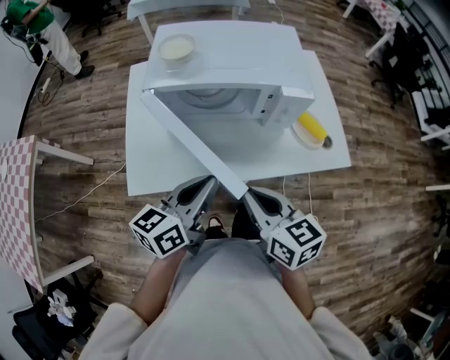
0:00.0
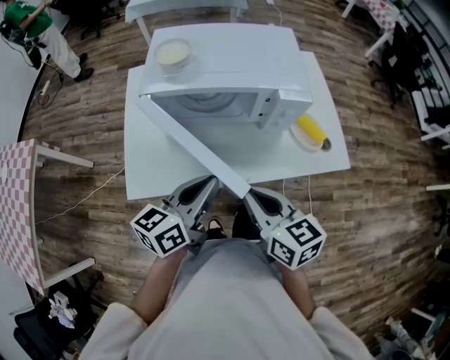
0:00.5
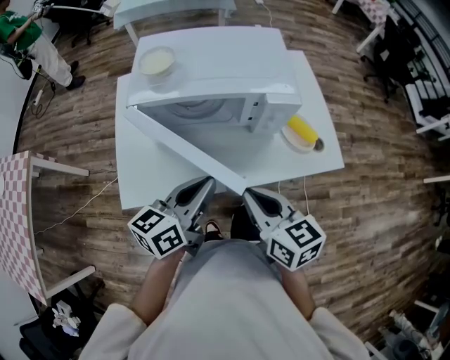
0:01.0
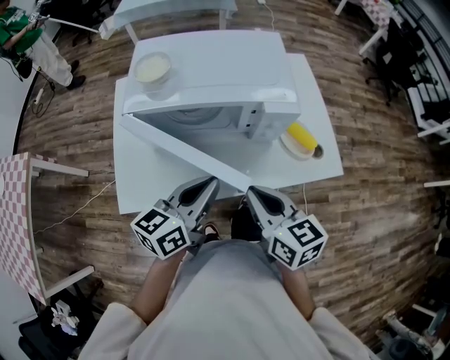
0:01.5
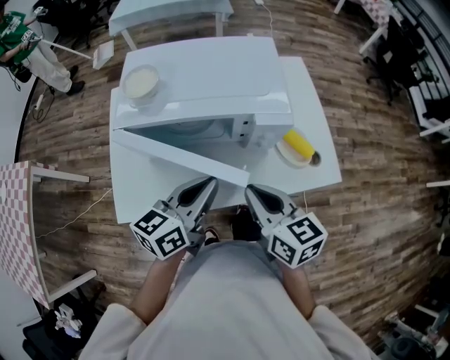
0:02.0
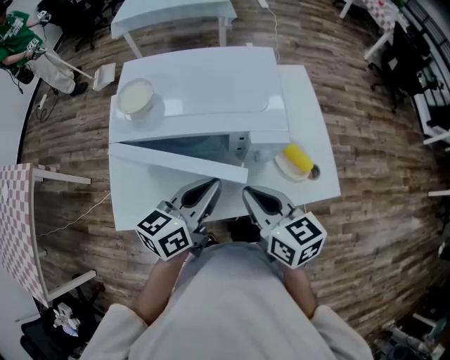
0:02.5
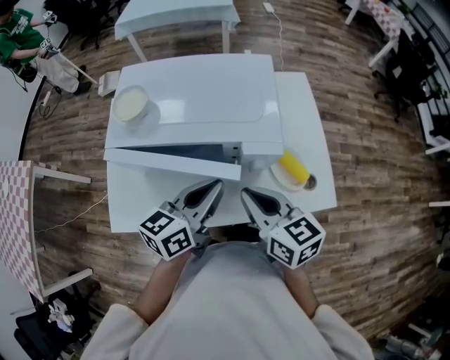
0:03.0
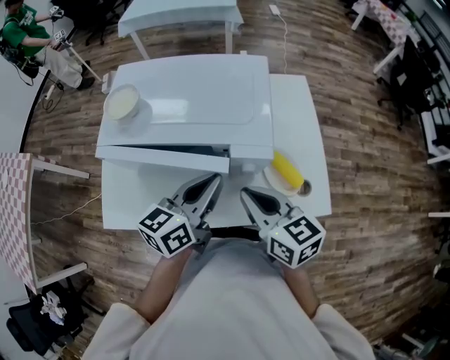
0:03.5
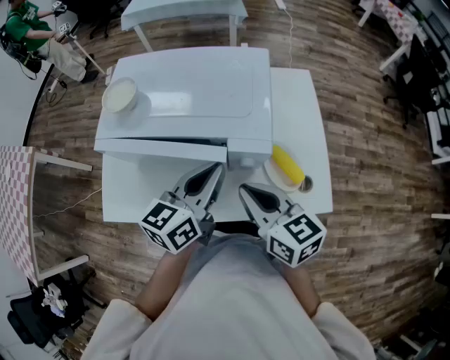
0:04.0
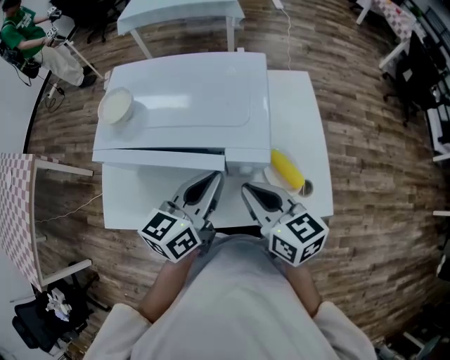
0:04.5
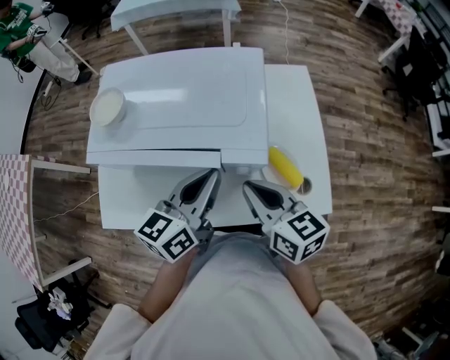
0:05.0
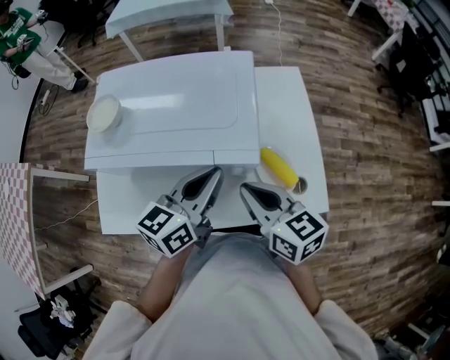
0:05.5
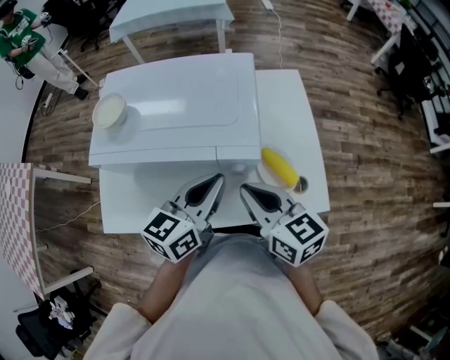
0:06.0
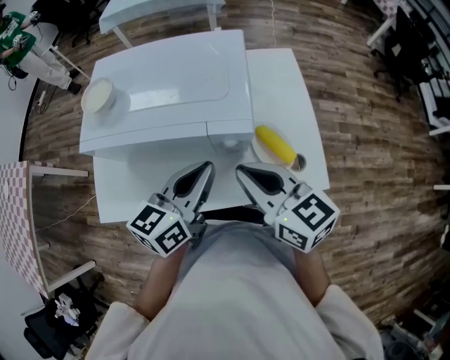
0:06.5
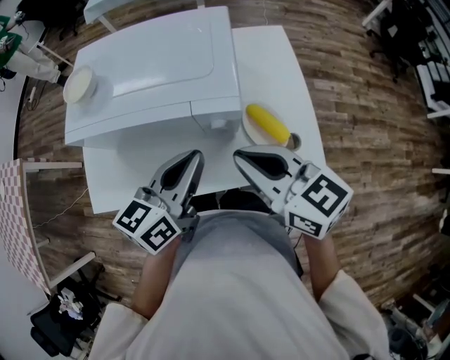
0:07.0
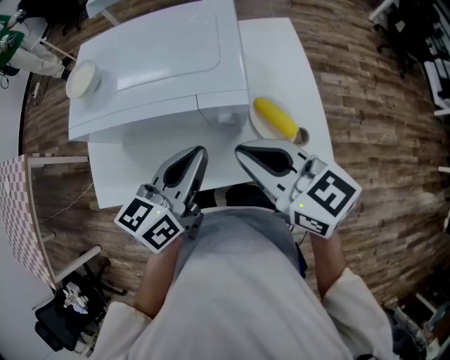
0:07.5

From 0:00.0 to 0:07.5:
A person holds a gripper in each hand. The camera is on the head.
From 0:00.0 to 0:02.0: Both grippers travel together forward and to the right, roughly 10 cm.
From 0:02.0 to 0:04.0: The right gripper shifts about 10 cm forward and to the right. Meanwhile the left gripper travels to the right and forward by approximately 10 cm.
From 0:04.0 to 0:05.5: The grippers make only small movements.
From 0:05.5 to 0:07.5: The right gripper shifts some 5 cm upward; the left gripper travels backward by roughly 5 cm.

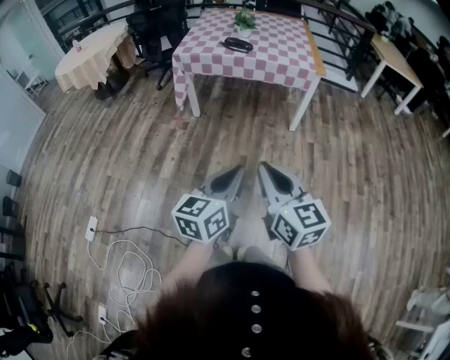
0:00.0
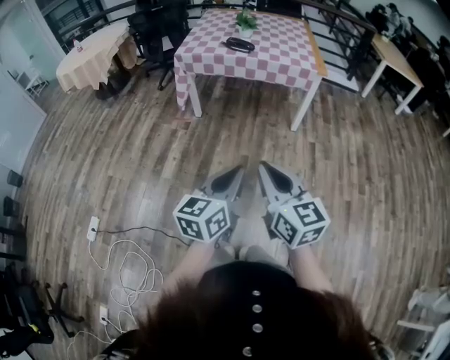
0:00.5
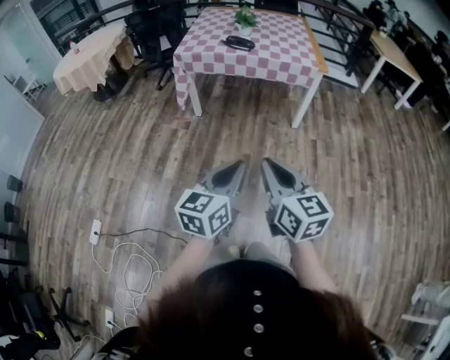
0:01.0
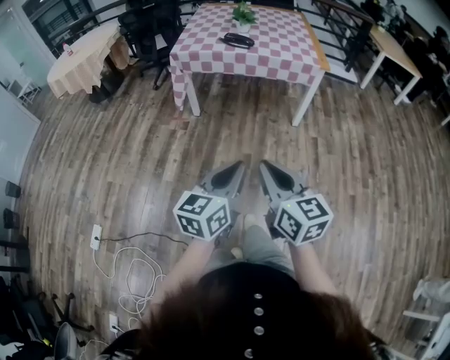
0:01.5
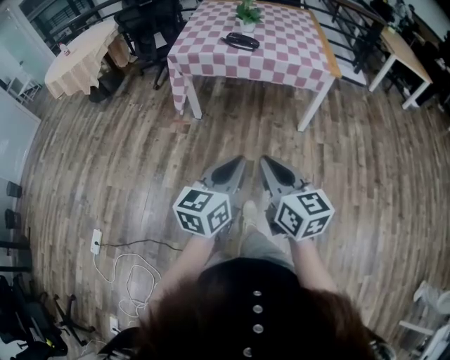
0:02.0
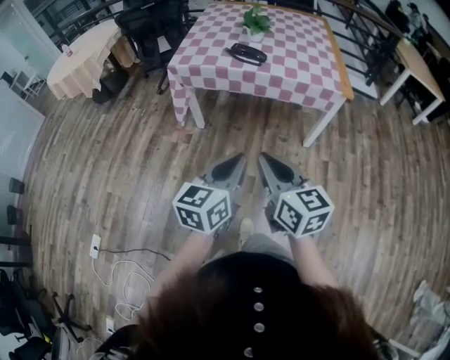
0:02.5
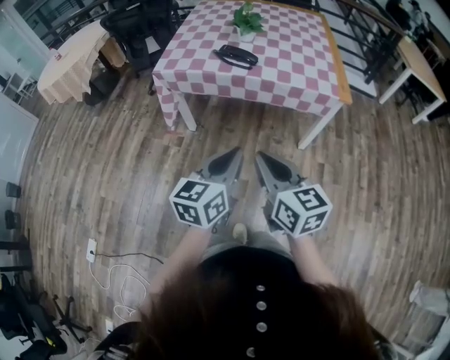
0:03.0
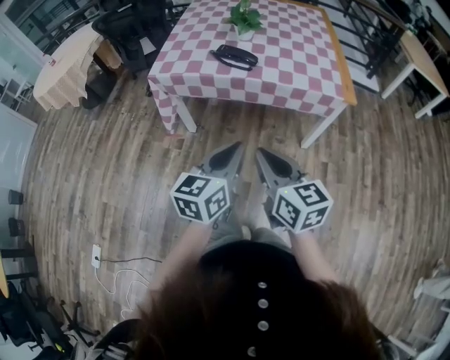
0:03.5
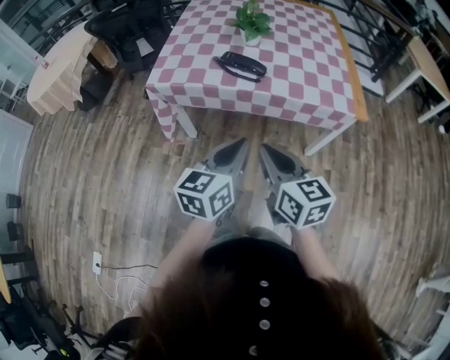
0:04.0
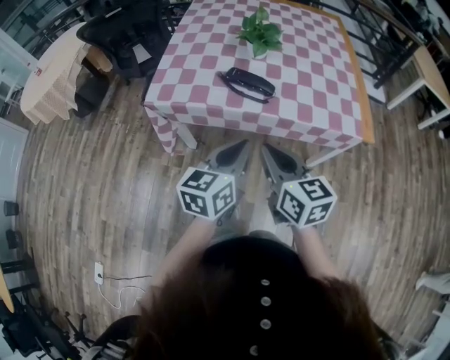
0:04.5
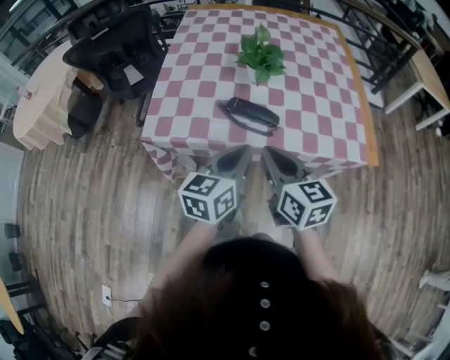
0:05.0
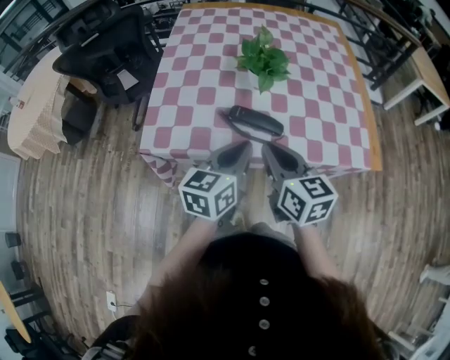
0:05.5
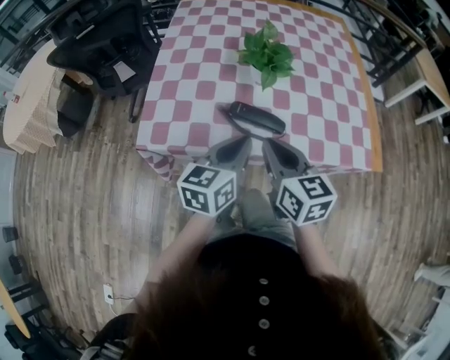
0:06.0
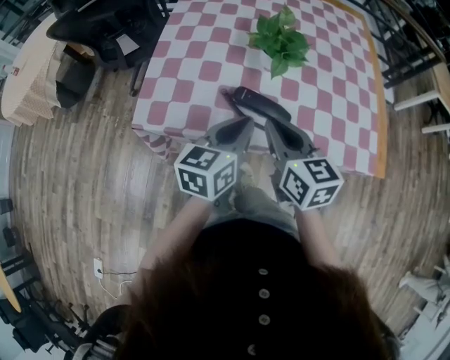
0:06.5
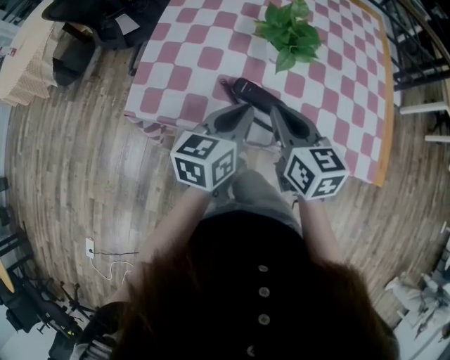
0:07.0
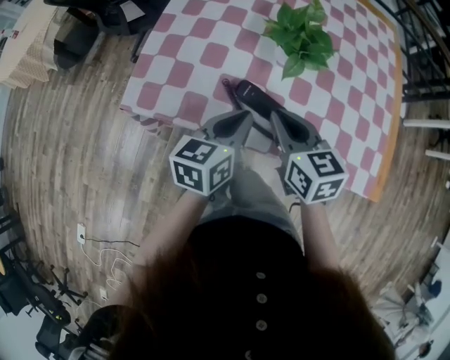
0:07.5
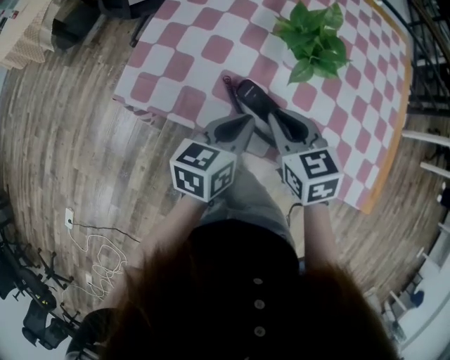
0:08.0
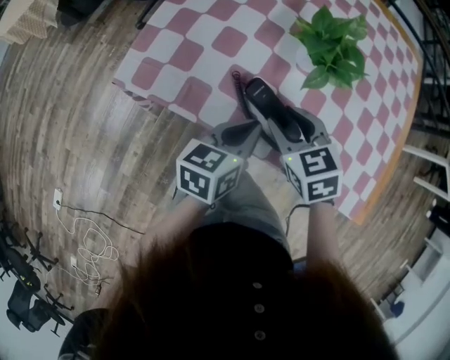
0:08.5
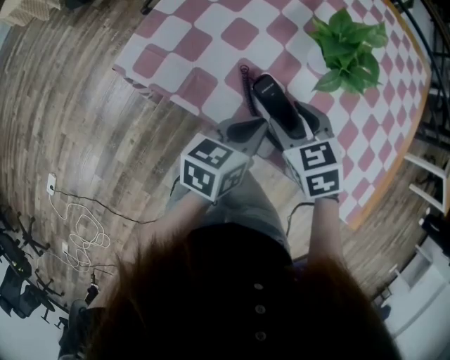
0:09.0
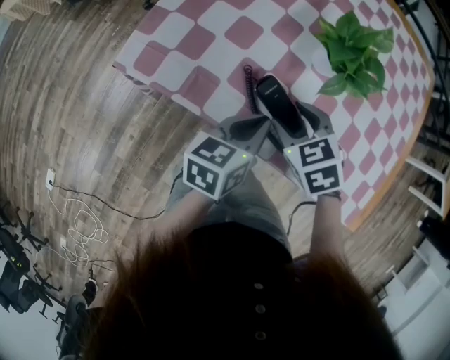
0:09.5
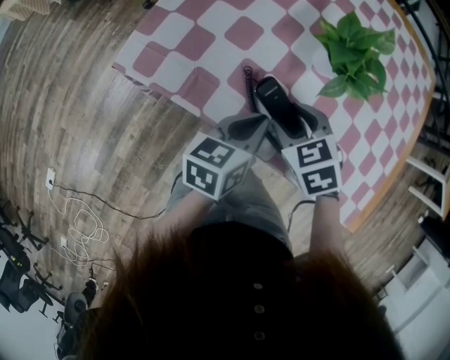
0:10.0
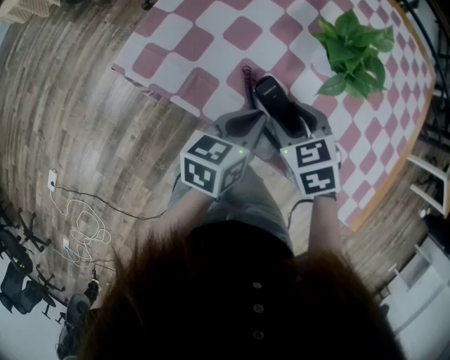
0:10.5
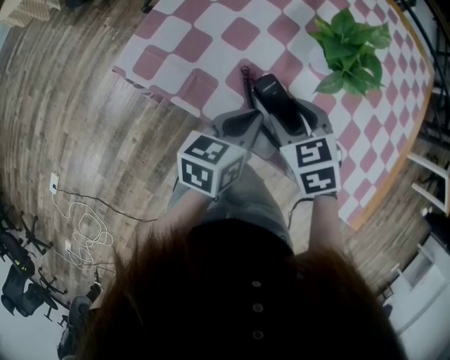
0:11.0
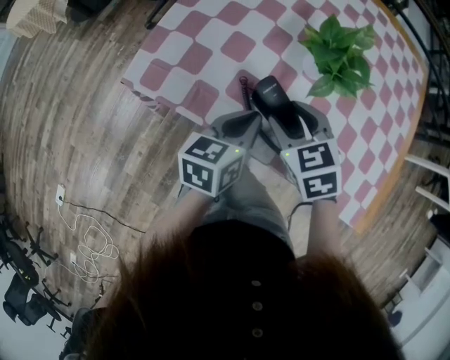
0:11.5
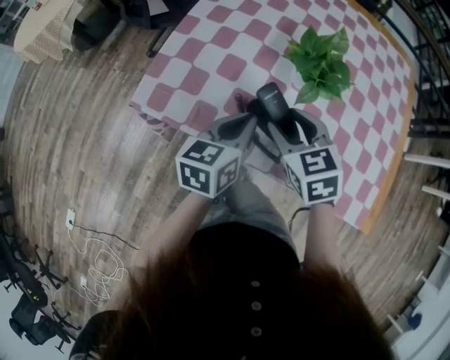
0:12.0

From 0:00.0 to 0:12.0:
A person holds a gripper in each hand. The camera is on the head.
From 0:00.0 to 0:02.0: The two grippers go about 15 cm forward.
From 0:02.0 to 0:04.0: Both grippers travel together forward, approximately 40 cm.
From 0:04.0 to 0:06.0: The grippers both shift forward by roughly 30 cm.
From 0:06.0 to 0:08.0: The right gripper is displaced forward and downward by approximately 15 cm, and swivels some 30 degrees, while the left gripper heads downward and forward, covering roughly 10 cm.
From 0:08.0 to 0:10.0: The right gripper moves downward, approximately 5 cm, rotates roughly 30 degrees, and opens up.
From 0:10.0 to 0:12.0: Both grippers travel together upward, about 10 cm. The right gripper turns by some 20 degrees.

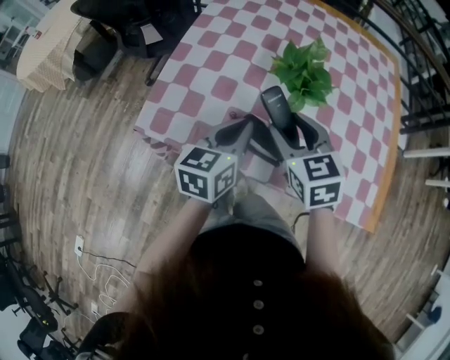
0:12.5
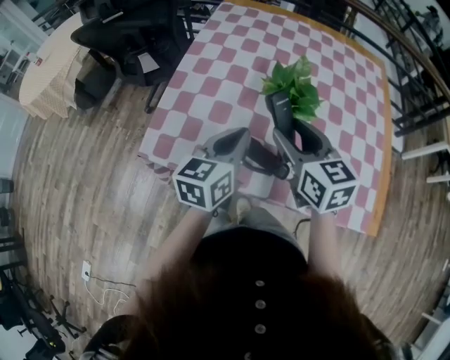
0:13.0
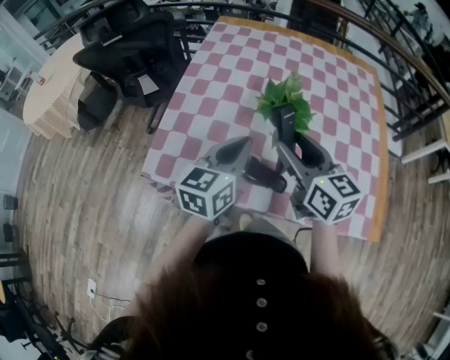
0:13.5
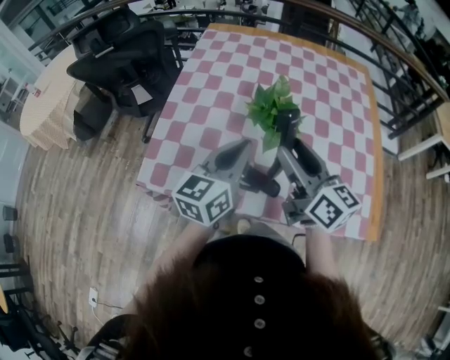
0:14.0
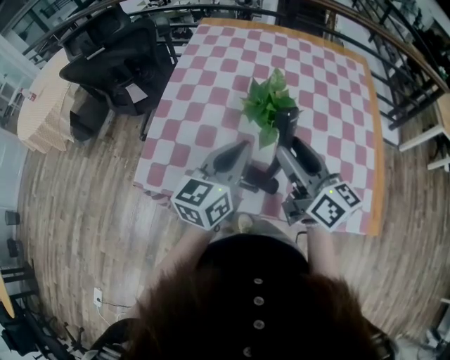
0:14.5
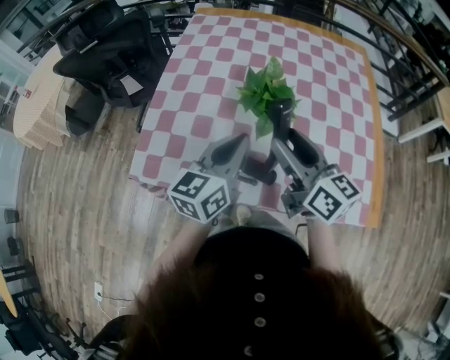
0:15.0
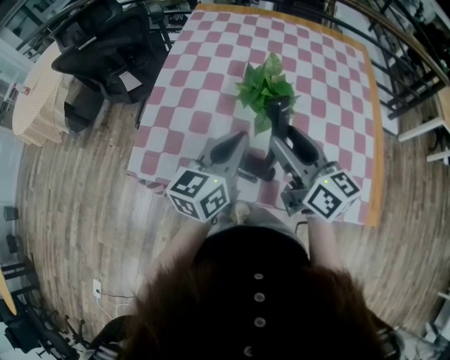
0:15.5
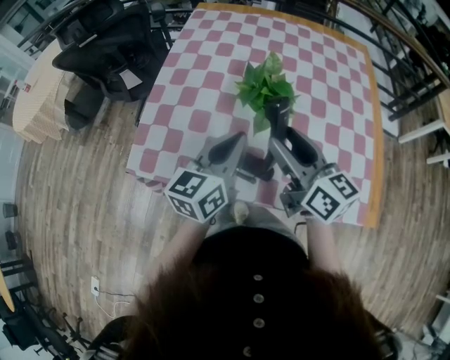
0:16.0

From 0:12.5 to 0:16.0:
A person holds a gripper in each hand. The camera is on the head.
From 0:12.5 to 0:14.5: The right gripper moves upward and to the right, approximately 10 cm, and tips its fingers upward by approximately 30 degrees. The left gripper shifts about 10 cm upward.
From 0:14.5 to 0:16.0: The grippers stay close to where they were, moving slightly.

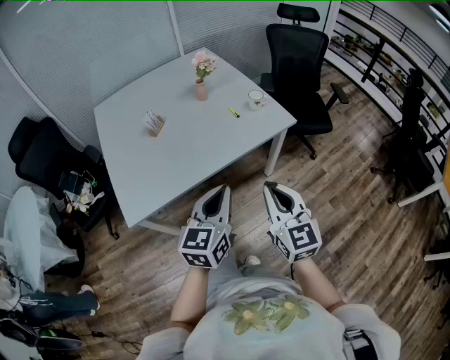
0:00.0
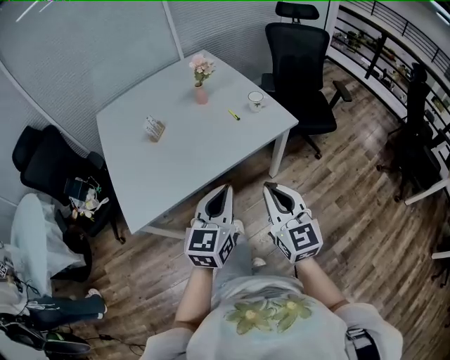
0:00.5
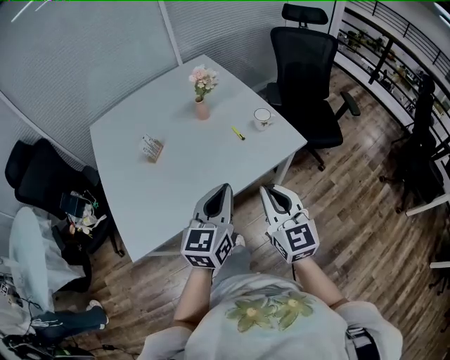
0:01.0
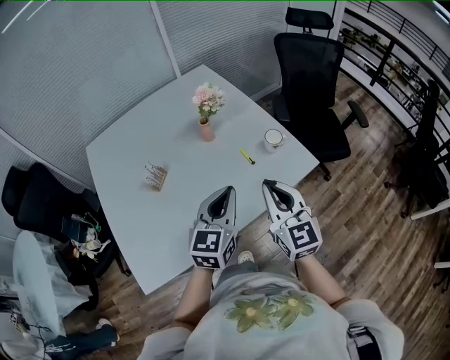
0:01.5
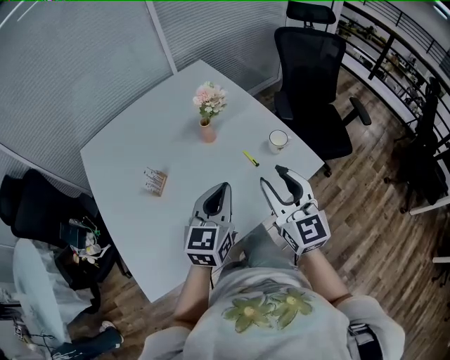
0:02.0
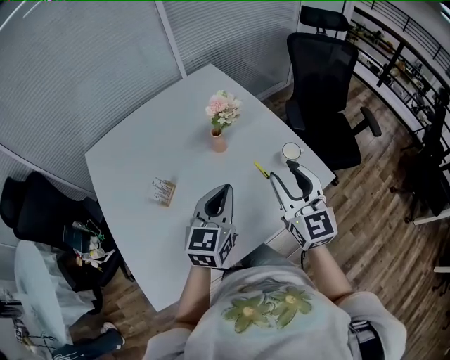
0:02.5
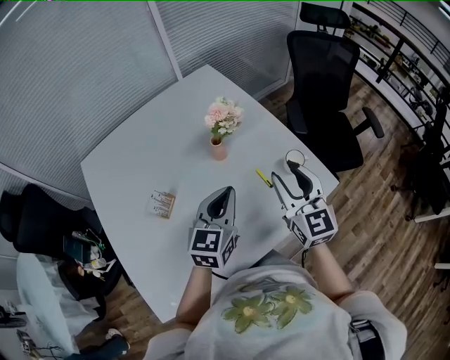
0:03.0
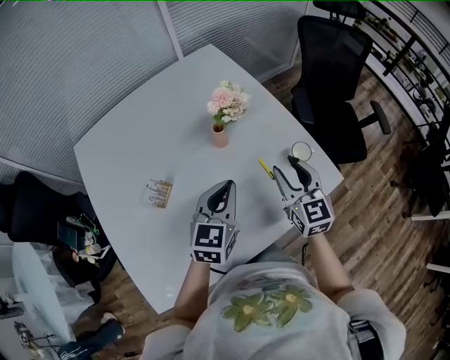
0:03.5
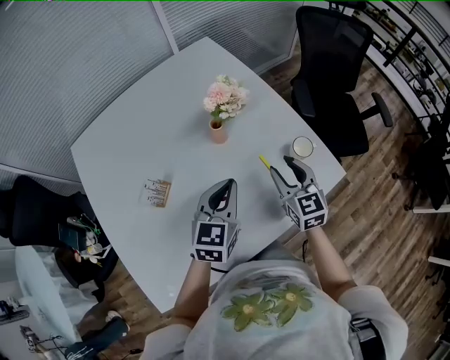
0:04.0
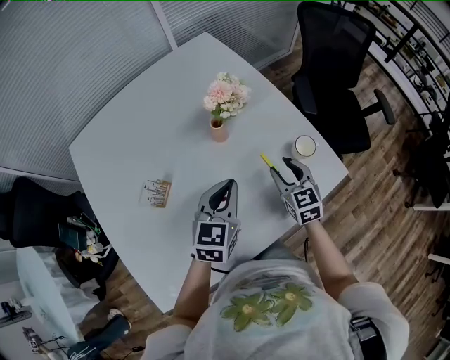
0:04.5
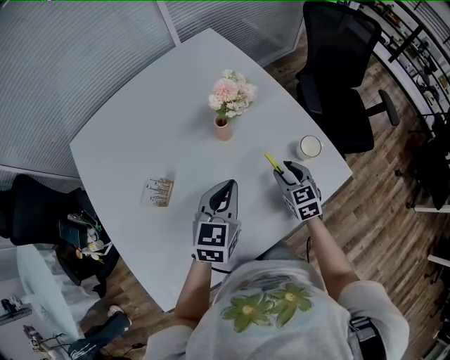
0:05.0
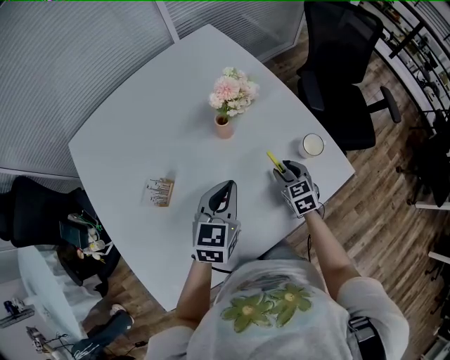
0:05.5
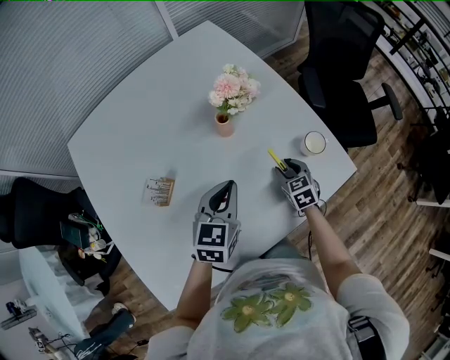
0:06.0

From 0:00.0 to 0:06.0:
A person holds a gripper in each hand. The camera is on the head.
From 0:00.0 to 0:02.0: Both grippers move forward, some 35 cm. The right gripper opens its fingers.
From 0:02.0 to 0:04.0: The right gripper heads forward and downward, covering some 25 cm, while the left gripper travels forward and downward by approximately 15 cm.
From 0:04.0 to 0:06.0: The right gripper shifts roughly 20 cm downward, and swivels roughly 30 degrees. The left gripper changes place by about 5 cm.
